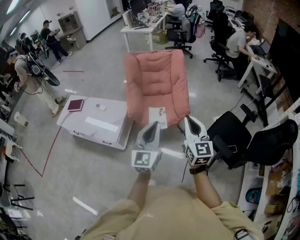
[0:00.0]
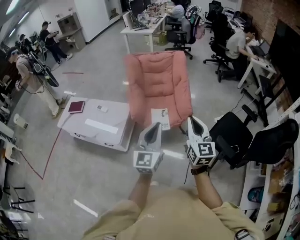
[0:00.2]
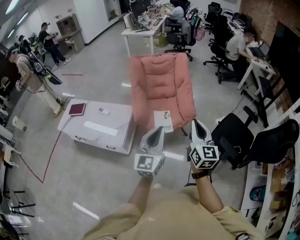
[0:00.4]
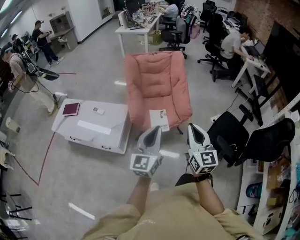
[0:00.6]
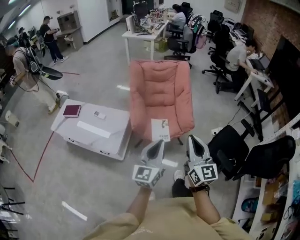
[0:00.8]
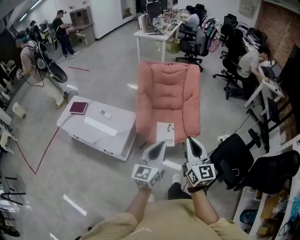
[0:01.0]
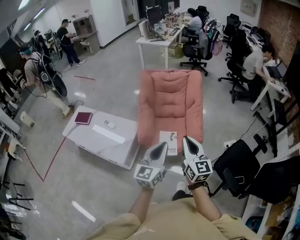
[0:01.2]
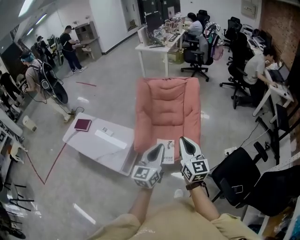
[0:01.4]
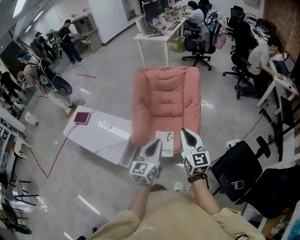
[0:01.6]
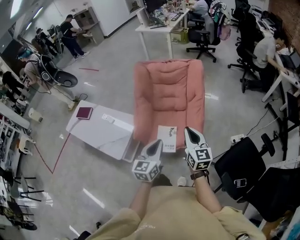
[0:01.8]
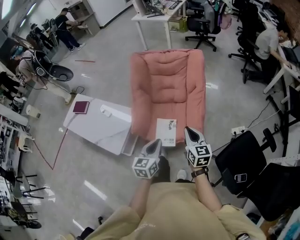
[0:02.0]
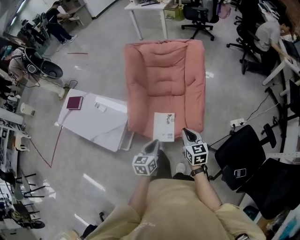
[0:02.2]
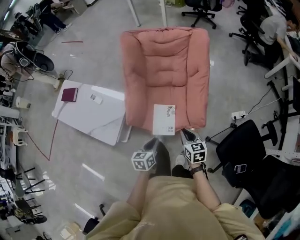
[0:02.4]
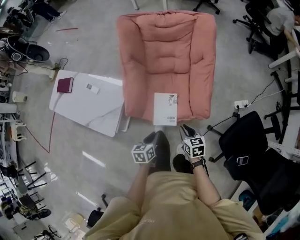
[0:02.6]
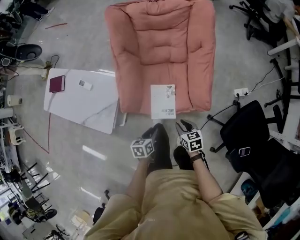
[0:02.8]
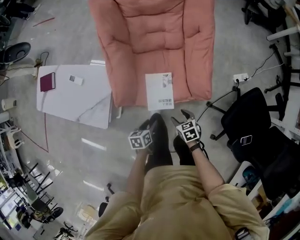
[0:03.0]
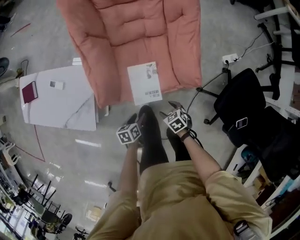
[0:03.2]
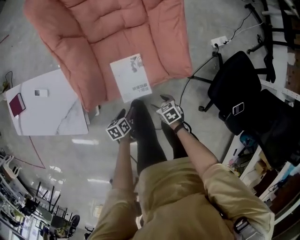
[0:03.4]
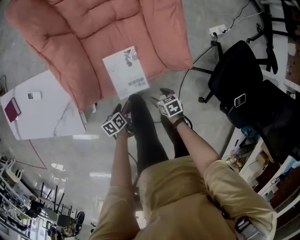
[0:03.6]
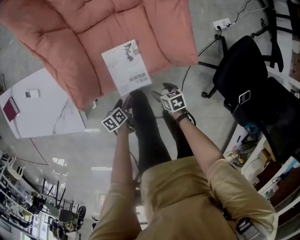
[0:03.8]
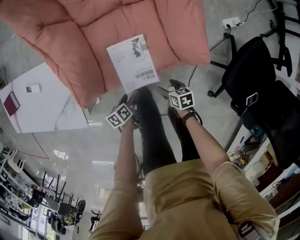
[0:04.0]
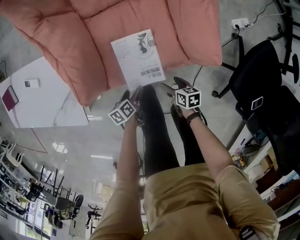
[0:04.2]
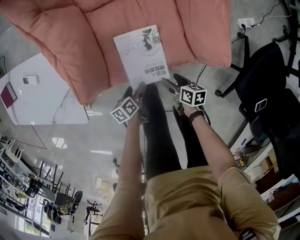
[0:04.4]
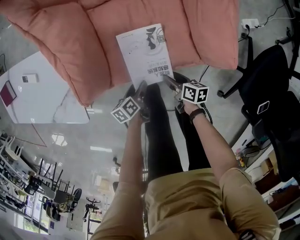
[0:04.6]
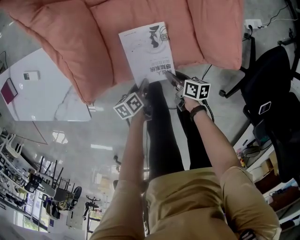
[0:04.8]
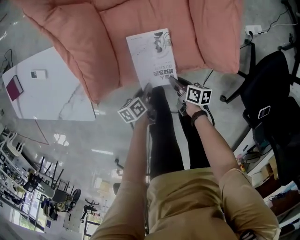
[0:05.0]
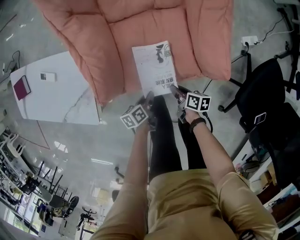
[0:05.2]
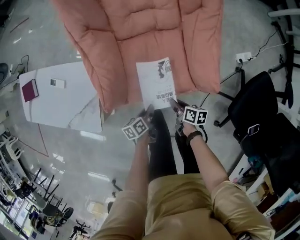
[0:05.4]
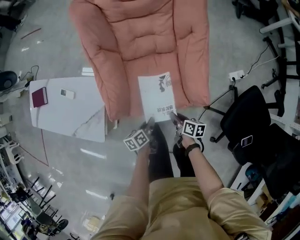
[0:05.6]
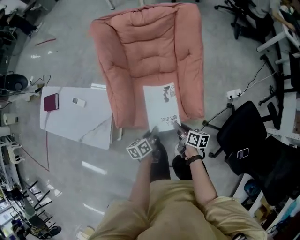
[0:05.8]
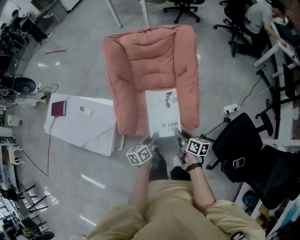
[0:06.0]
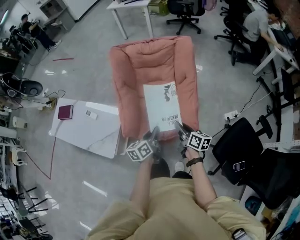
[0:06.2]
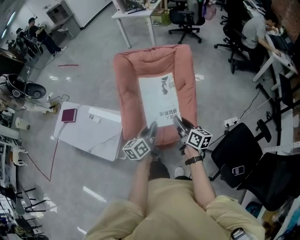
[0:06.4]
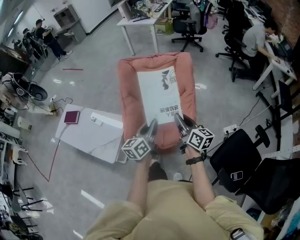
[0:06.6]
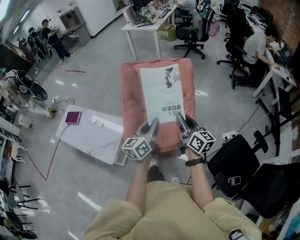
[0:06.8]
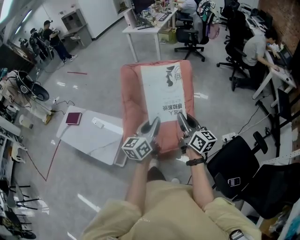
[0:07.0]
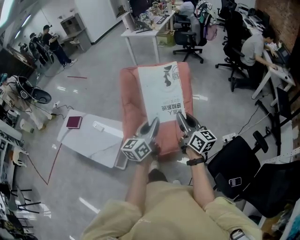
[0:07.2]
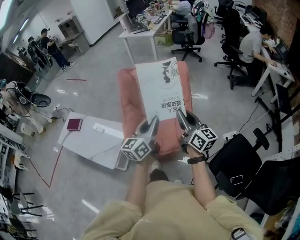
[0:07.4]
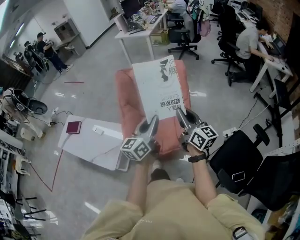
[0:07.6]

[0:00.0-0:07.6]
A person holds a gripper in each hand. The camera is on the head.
0:00.0 to 0:01.6: Both grippers move forward, approximately 25 cm.
0:01.6 to 0:03.0: Both grippers travel together downward, roughly 50 cm. The right gripper tips its fingers downward by roughly 60 degrees, and opens. The left gripper angles its fingers downward, by about 50 degrees, and opens its fingers.
0:03.0 to 0:04.6: The two grippers go roughly 25 cm downward. The right gripper twists roughly 50 degrees clockwise, seen from behind.
0:04.6 to 0:06.0: Both grippers travel together upward, about 40 cm. The right gripper changes its angle by some 20 degrees, and closes its fingers. Meanwhile the left gripper swivels some 30 degrees, and closes up.
0:06.0 to 0:07.6: Both grippers travel together upward, approximately 35 cm. The right gripper tilts its fingers roughly 30 degrees upward, while the left gripper tips its fingers upward by roughly 30 degrees.

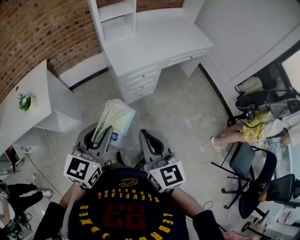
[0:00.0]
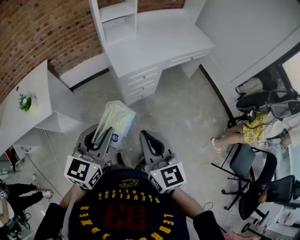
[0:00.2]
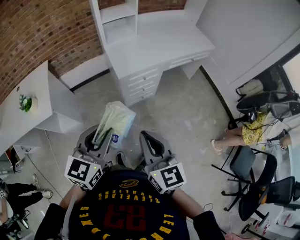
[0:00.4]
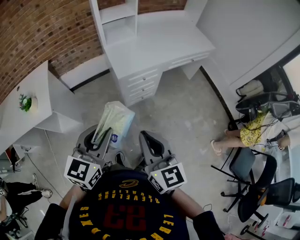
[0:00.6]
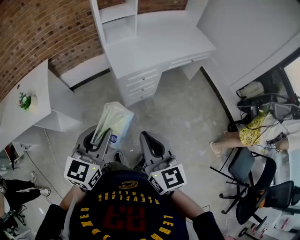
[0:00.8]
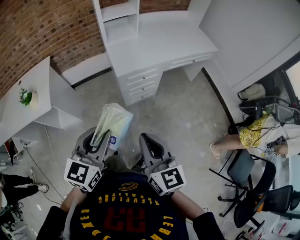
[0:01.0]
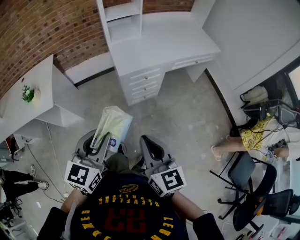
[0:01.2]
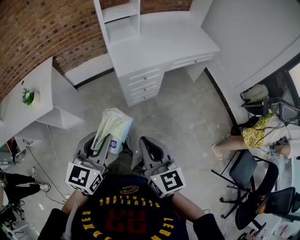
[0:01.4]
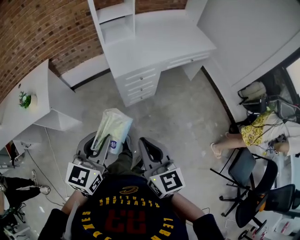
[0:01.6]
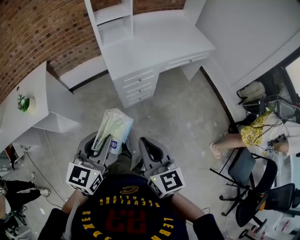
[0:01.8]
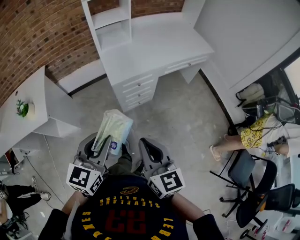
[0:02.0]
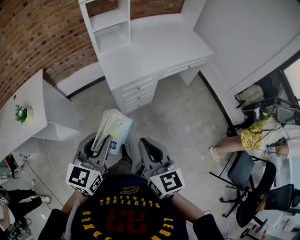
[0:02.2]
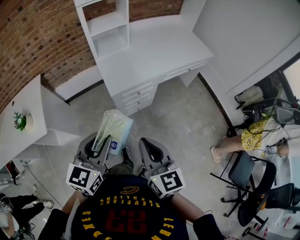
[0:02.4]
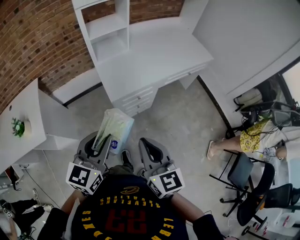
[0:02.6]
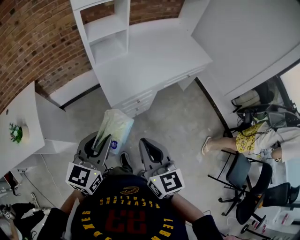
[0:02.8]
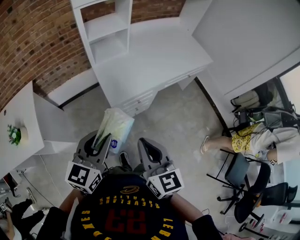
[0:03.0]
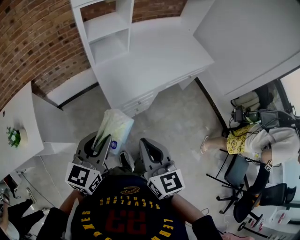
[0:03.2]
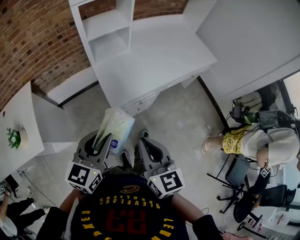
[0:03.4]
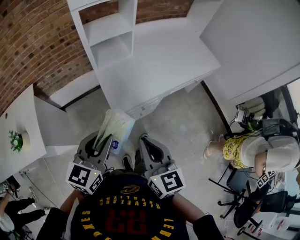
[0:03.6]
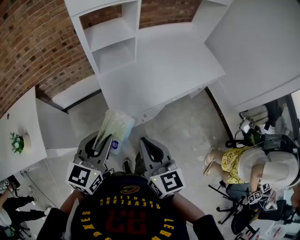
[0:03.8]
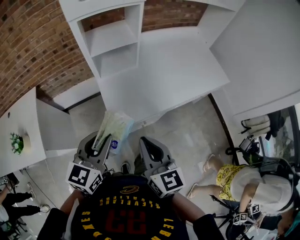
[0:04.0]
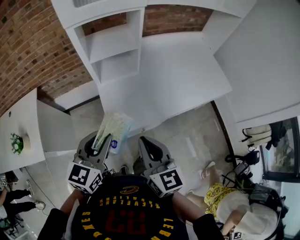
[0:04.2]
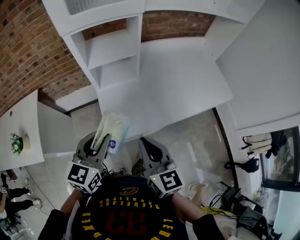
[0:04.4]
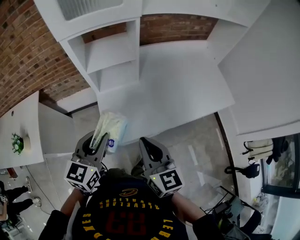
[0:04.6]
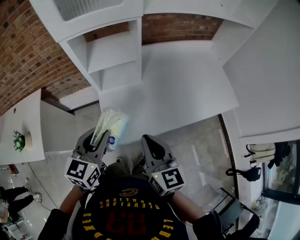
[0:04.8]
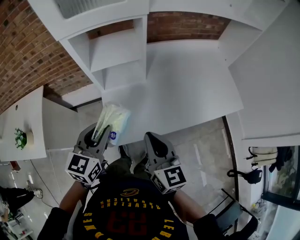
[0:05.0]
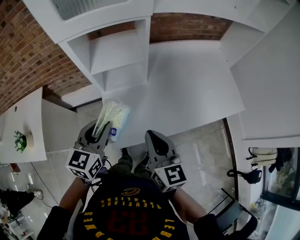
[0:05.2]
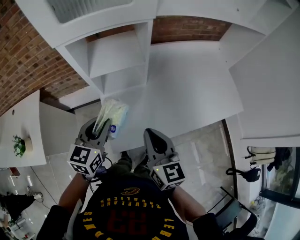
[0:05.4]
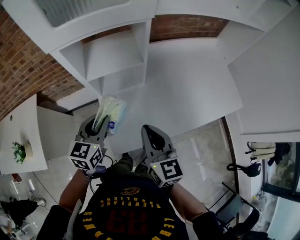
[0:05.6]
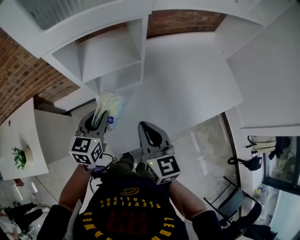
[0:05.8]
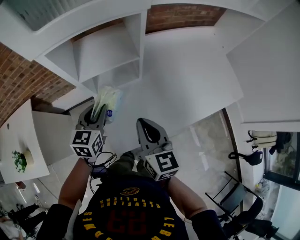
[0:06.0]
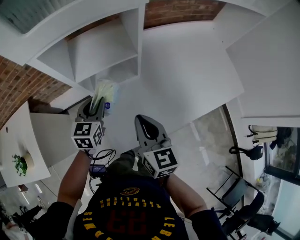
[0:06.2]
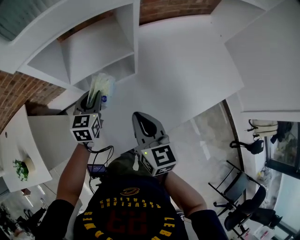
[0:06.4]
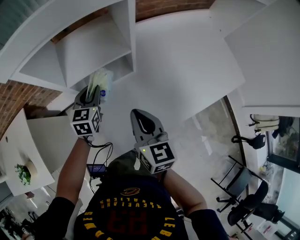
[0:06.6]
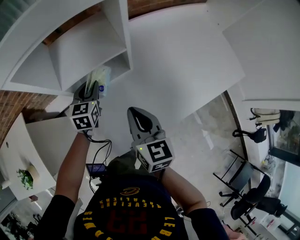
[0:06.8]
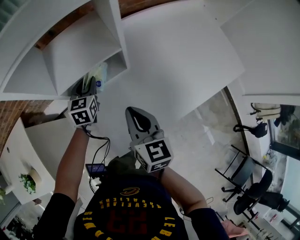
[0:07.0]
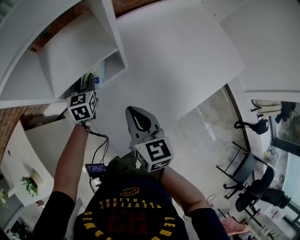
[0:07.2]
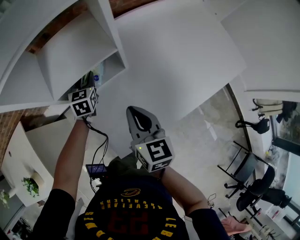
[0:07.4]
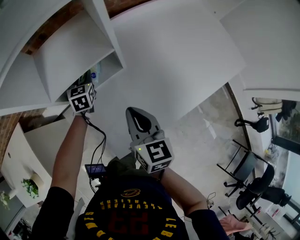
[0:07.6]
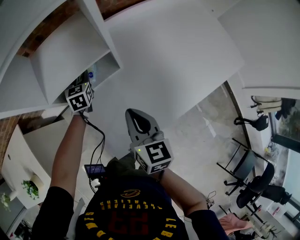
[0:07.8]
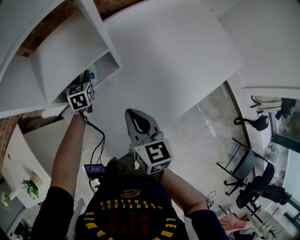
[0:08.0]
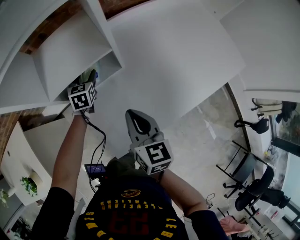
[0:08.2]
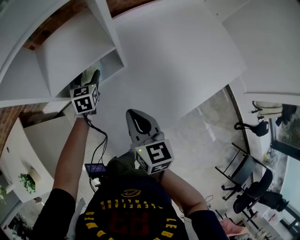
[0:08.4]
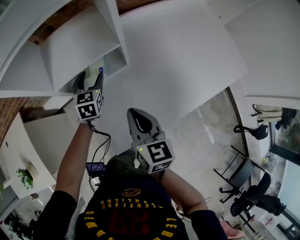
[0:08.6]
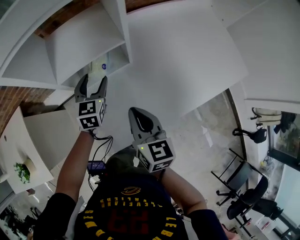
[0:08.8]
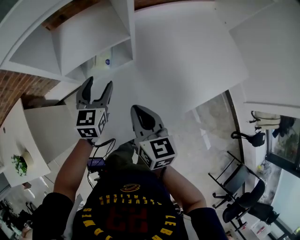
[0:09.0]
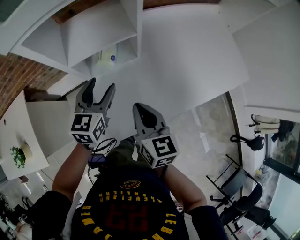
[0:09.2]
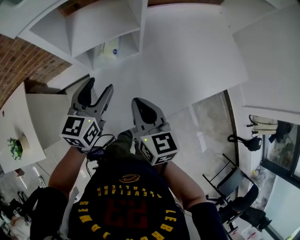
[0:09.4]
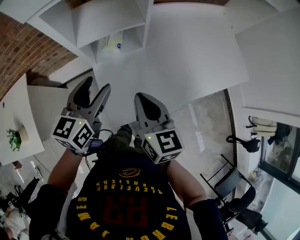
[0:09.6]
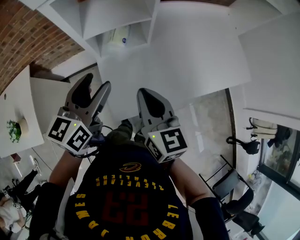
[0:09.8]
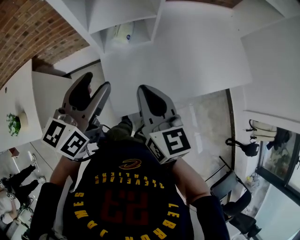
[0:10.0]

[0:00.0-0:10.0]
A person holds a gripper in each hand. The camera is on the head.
0:00.0 to 0:01.4: The right gripper ends up some 5 cm from where it was.
0:01.4 to 0:02.8: Both grippers move forward, about 20 cm.
0:02.8 to 0:04.2: The two grippers go some 25 cm forward.
0:04.2 to 0:05.8: The right gripper heads forward, covering about 20 cm; the left gripper heads forward and downward, covering approximately 25 cm.
0:05.8 to 0:07.2: The right gripper is displaced downward and forward by approximately 10 cm; the left gripper heads forward and downward, covering roughly 25 cm.
0:07.2 to 0:08.6: The left gripper opens.
0:08.6 to 0:10.0: The left gripper heads upward and backward, covering approximately 35 cm, and swivels about 40 degrees; the right gripper heads upward and backward, covering roughly 15 cm.

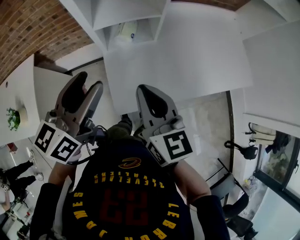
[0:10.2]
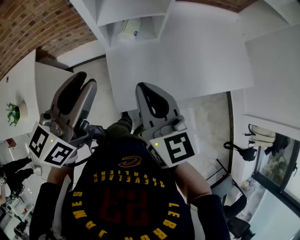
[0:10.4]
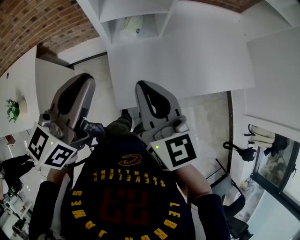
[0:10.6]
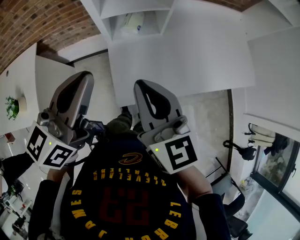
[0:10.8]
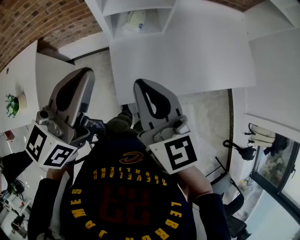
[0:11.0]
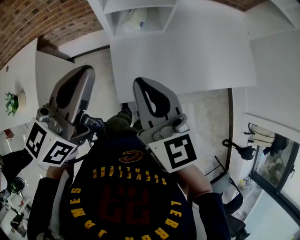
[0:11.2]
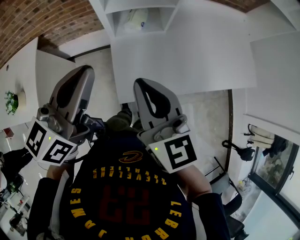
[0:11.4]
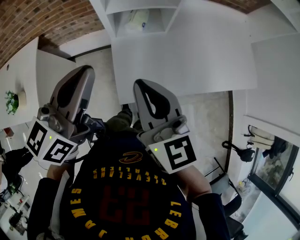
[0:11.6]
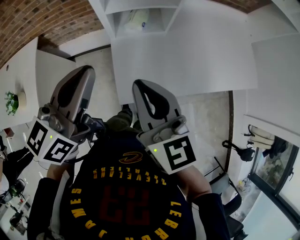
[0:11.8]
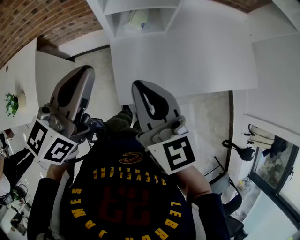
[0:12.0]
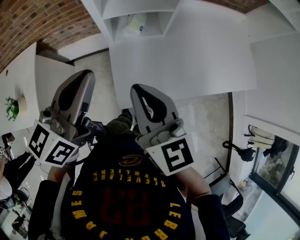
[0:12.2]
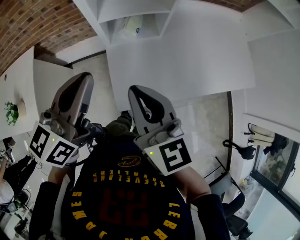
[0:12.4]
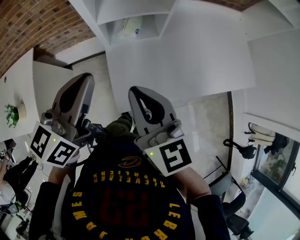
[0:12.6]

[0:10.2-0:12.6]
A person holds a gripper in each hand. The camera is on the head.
0:10.2 to 0:11.4: The left gripper closes up. Meanwhile the right gripper changes place by some 5 cm.
0:11.4 to 0:12.6: The grippers make only small movements.

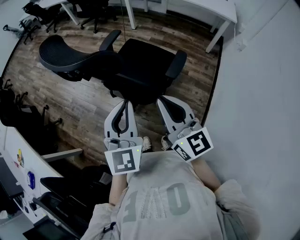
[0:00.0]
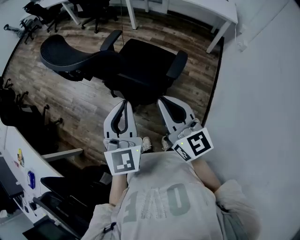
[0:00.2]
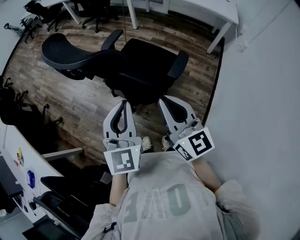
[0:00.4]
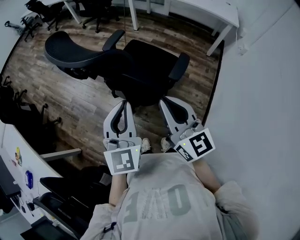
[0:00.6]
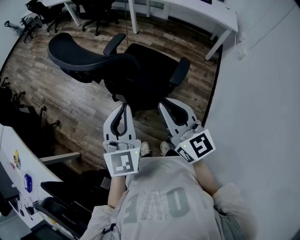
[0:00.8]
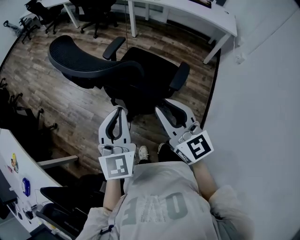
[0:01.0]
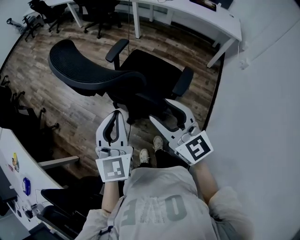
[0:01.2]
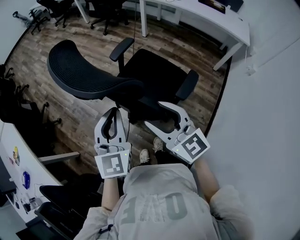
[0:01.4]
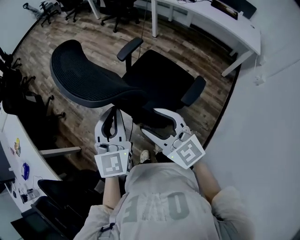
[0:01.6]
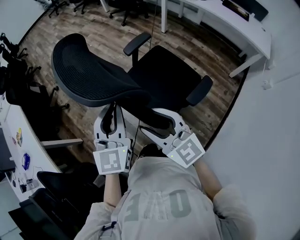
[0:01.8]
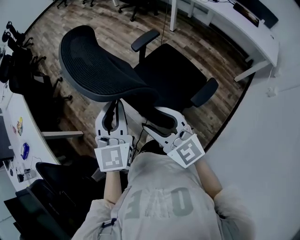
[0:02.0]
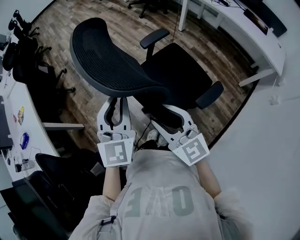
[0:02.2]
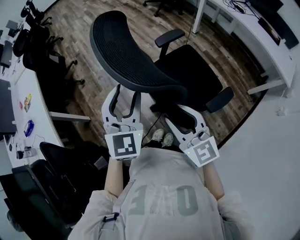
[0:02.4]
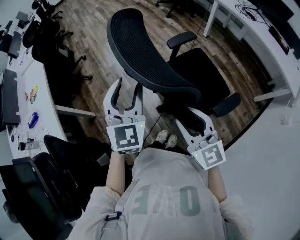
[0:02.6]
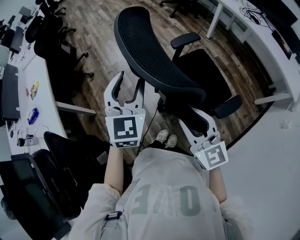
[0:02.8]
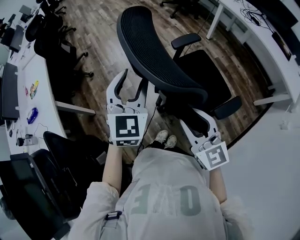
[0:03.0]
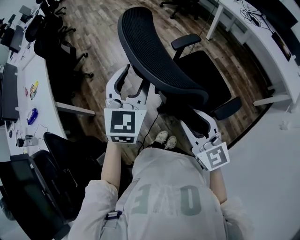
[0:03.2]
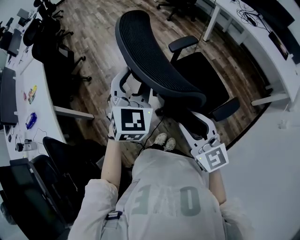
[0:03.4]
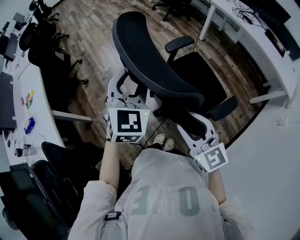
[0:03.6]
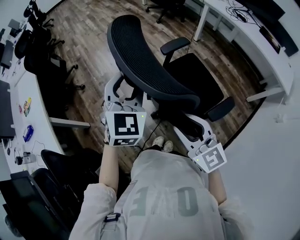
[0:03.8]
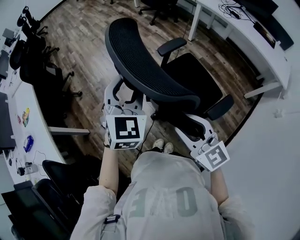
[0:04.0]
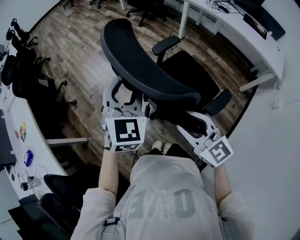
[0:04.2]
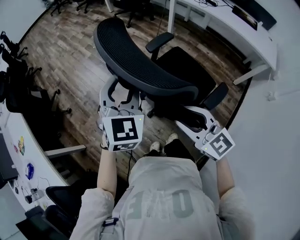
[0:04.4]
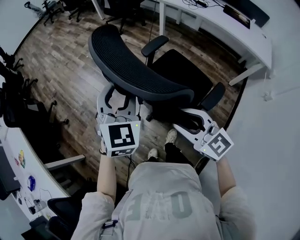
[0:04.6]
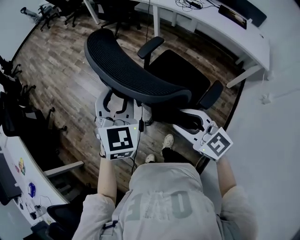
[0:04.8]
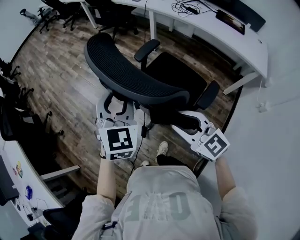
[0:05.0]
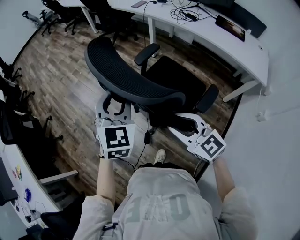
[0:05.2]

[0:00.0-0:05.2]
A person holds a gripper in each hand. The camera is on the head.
0:00.0 to 0:01.8: The left gripper changes place by about 15 cm. The right gripper changes place by approximately 15 cm, rotates about 40 degrees, and opens.
0:01.8 to 0:03.4: The left gripper goes approximately 10 cm forward, and opens.
0:03.4 to 0:05.2: The two grippers go approximately 35 cm to the right and forward.
